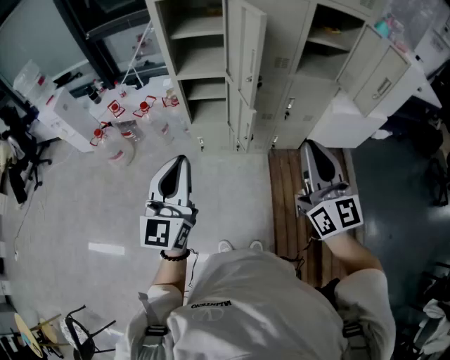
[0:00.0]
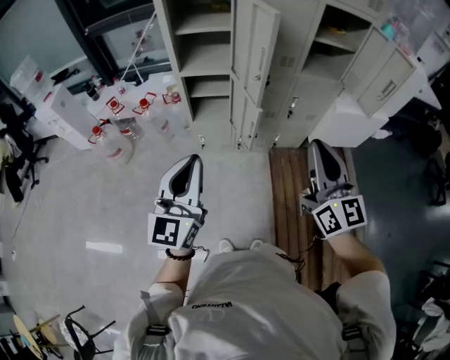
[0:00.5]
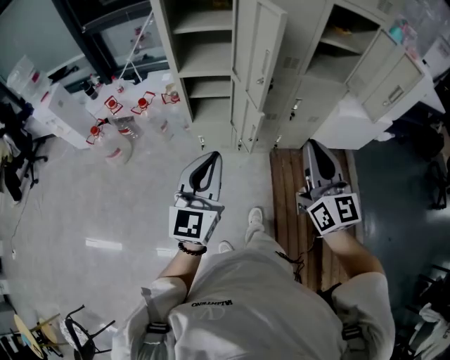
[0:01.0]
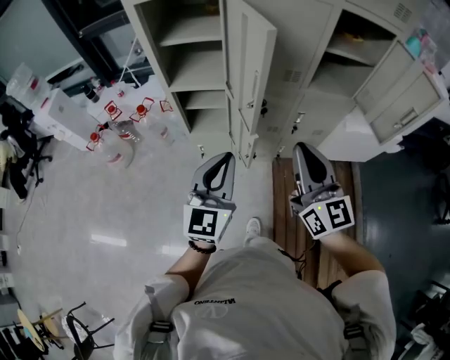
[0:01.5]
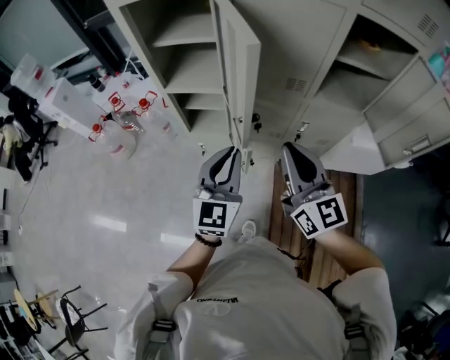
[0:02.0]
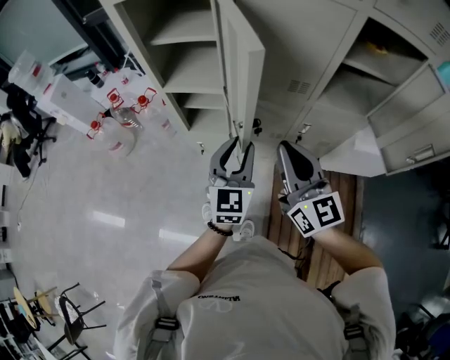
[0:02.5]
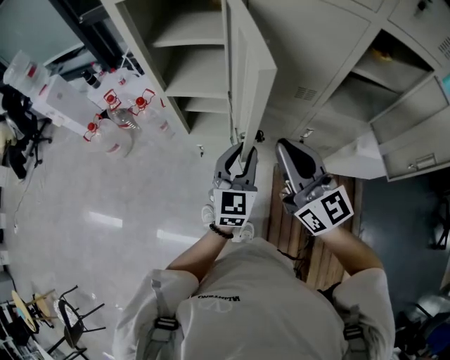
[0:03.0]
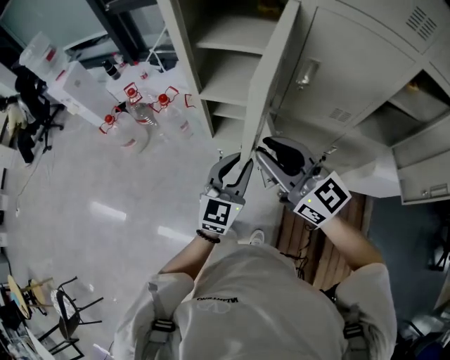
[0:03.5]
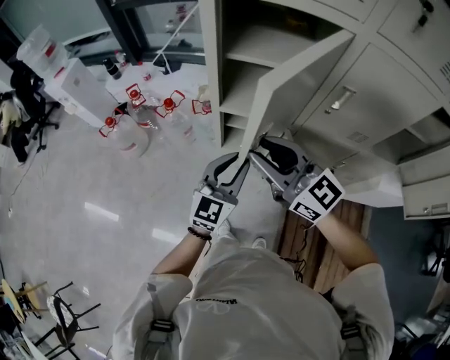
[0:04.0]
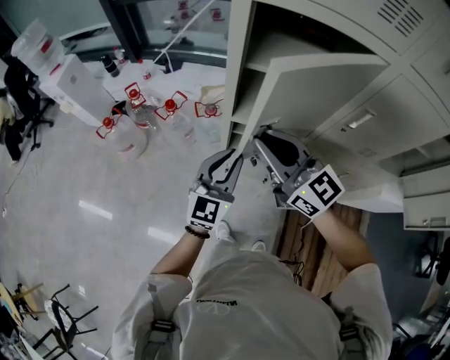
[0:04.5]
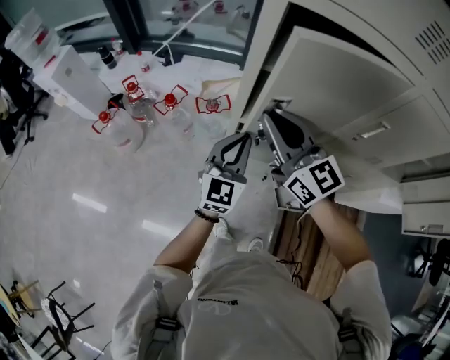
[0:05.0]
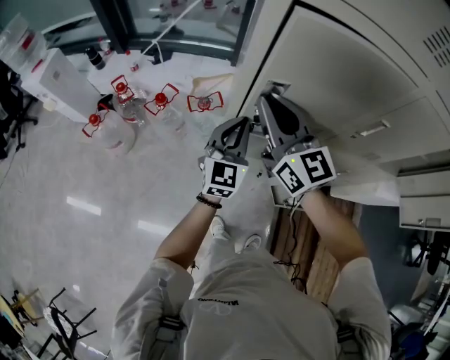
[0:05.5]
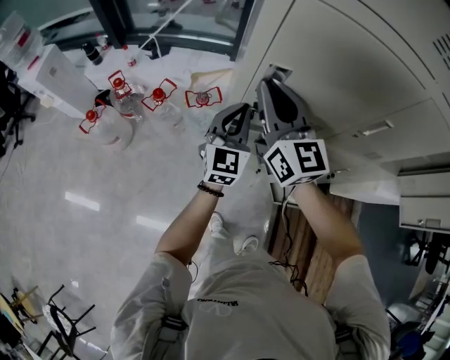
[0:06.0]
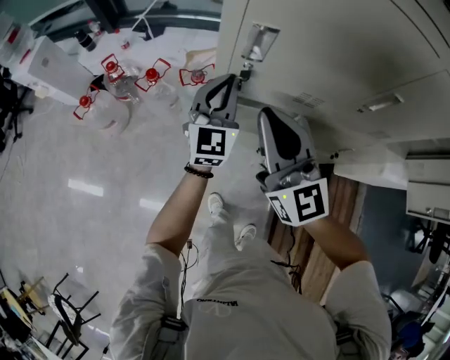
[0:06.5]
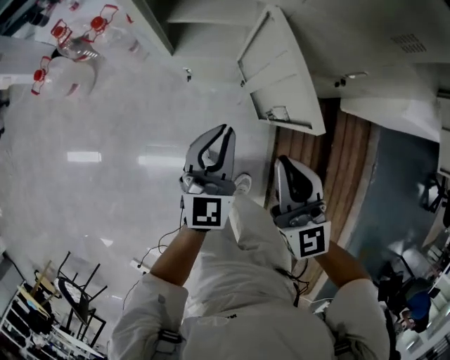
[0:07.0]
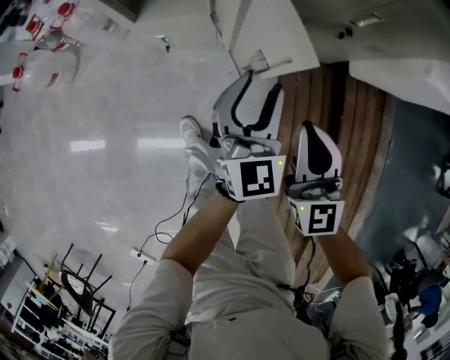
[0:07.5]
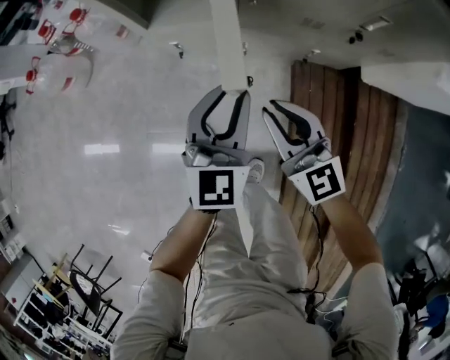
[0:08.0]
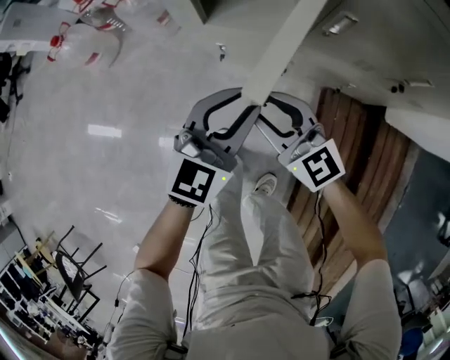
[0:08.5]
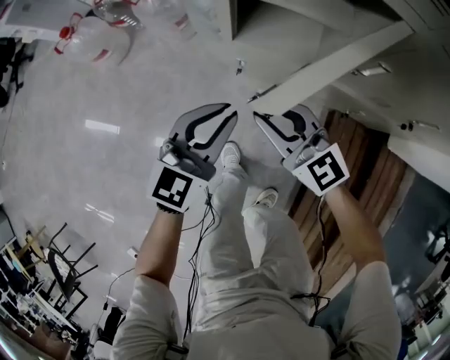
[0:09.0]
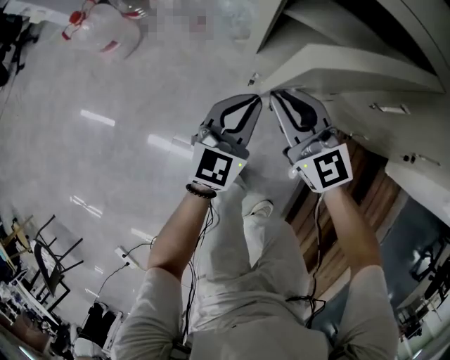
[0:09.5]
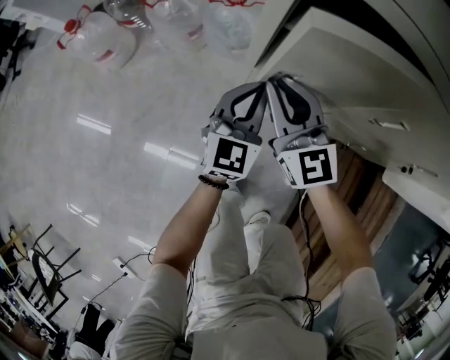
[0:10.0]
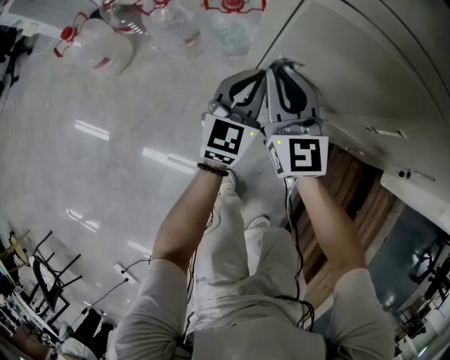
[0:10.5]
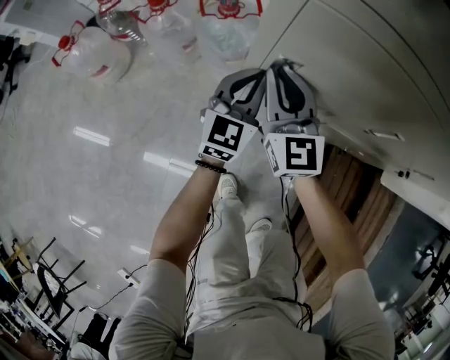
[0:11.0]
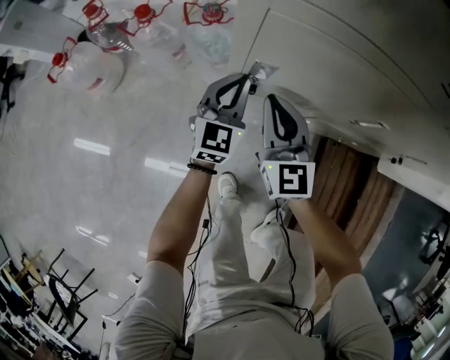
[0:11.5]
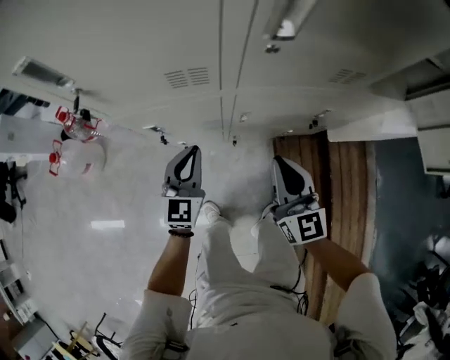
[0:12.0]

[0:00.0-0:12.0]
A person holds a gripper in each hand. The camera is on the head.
0:00.0 to 0:02.0: The right gripper heads forward, covering roughly 25 cm; the left gripper travels forward and to the right by roughly 30 cm.
0:02.0 to 0:04.0: Both grippers travel together to the left and forward, some 30 cm. The right gripper changes its angle by approximately 30 degrees, and opens.
0:04.0 to 0:06.0: Both grippers move forward, some 20 cm. The right gripper rotates approximately 30 degrees, and closes its fingers.
0:06.0 to 0:08.0: Both grippers travel together downward, backward and to the right, some 50 cm. The left gripper opens its fingers.
0:08.0 to 0:10.0: Both grippers travel together forward and to the left, approximately 35 cm. The right gripper opens, then closes once more, while the left gripper closes.
0:10.0 to 0:12.0: The right gripper is displaced to the right, upward and backward by about 40 cm, and swivels some 30 degrees. The left gripper travels upward and to the right by roughly 25 cm.

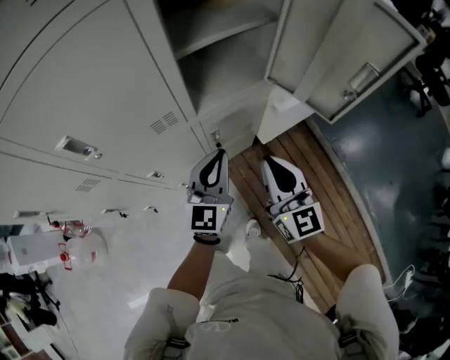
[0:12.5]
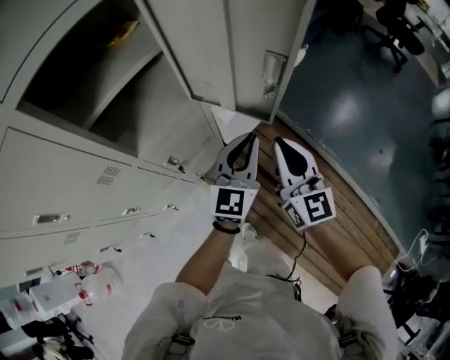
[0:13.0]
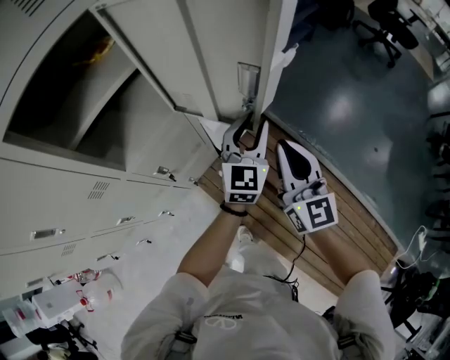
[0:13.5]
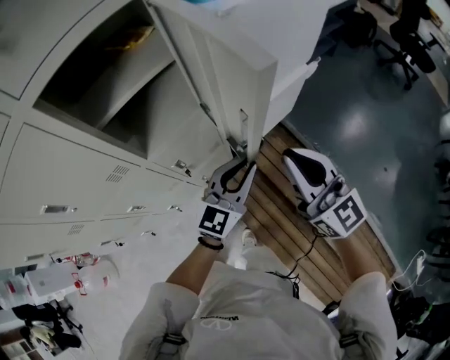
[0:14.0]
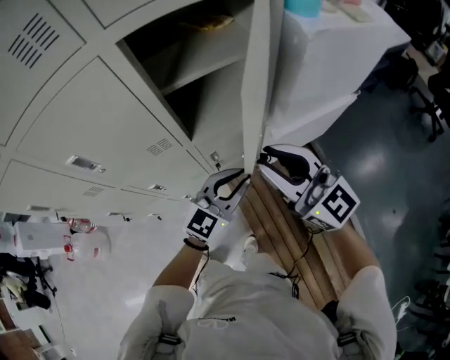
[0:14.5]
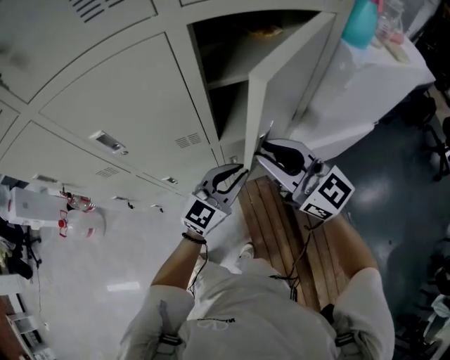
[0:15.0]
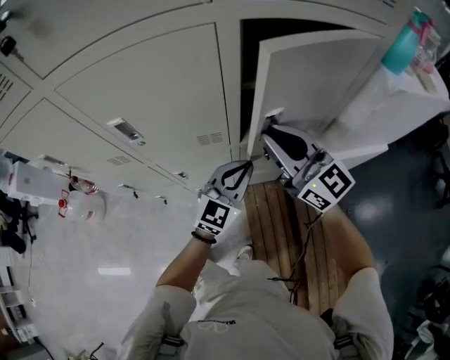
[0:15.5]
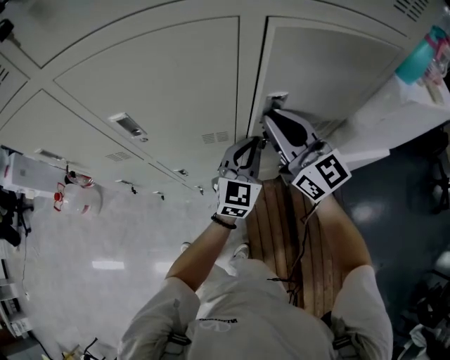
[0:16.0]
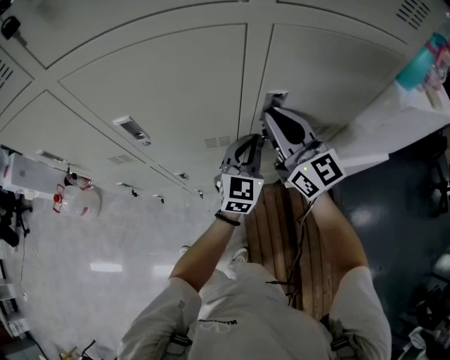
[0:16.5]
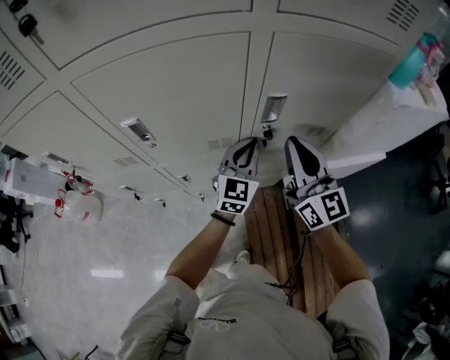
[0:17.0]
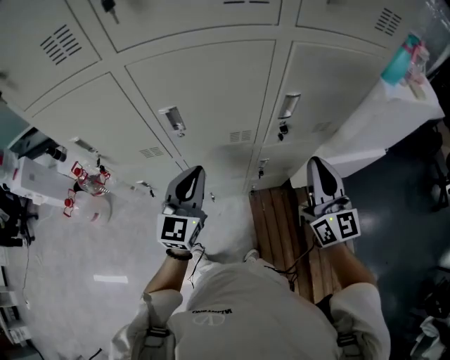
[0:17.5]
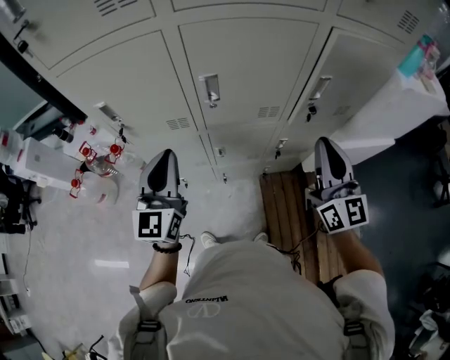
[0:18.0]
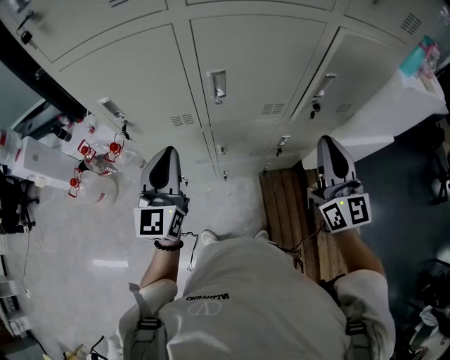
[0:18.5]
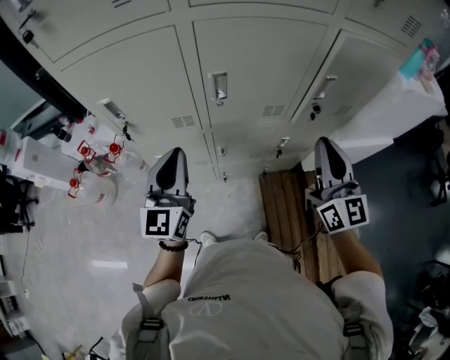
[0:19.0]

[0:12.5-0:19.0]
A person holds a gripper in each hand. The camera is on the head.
0:12.5 to 0:14.5: The right gripper shifts about 15 cm upward and forward, reaches about 25 cm to the right, then returns, swivels about 30 degrees, and opens its fingers, while the left gripper moves approximately 35 cm to the right and comes back, and swivels approximately 20 degrees.
0:14.5 to 0:17.0: The grippers both shift forward and to the left by some 15 cm. The left gripper changes its angle by approximately 40 degrees. Meanwhile the right gripper closes up.
0:17.0 to 0:19.0: The left gripper goes about 40 cm to the left and backward, and swivels about 20 degrees. Meanwhile the right gripper goes some 20 cm backward, to the left and upward.

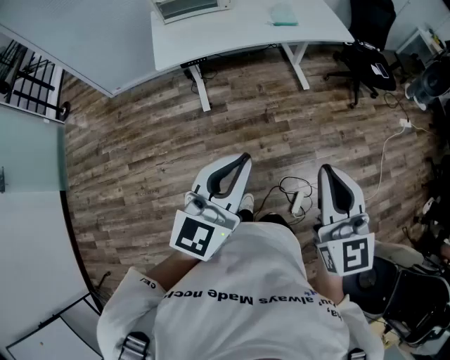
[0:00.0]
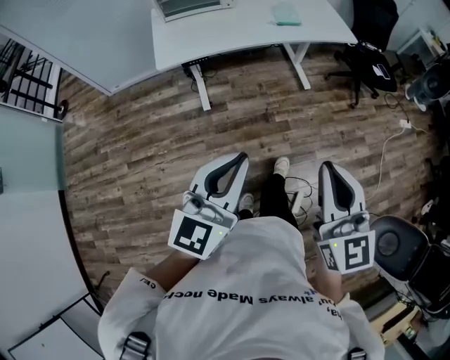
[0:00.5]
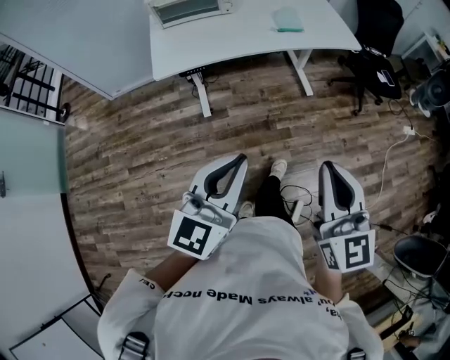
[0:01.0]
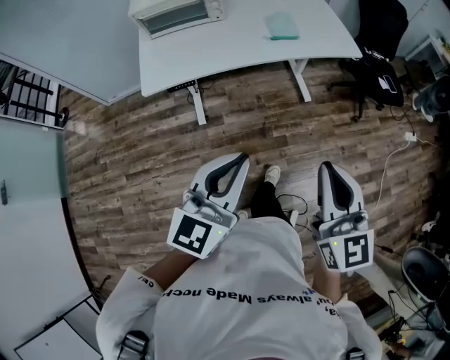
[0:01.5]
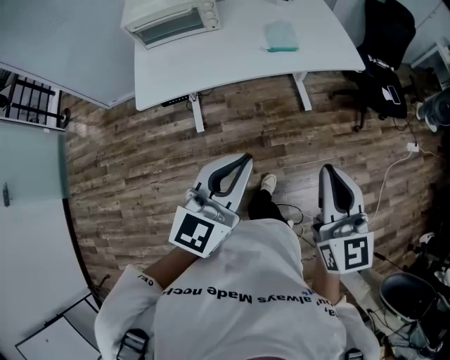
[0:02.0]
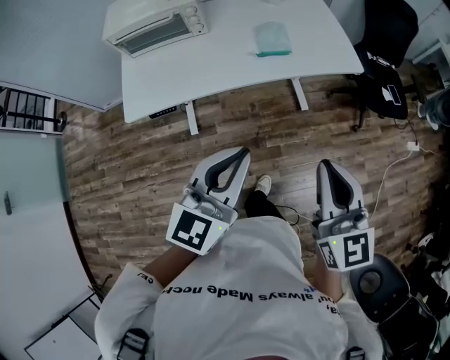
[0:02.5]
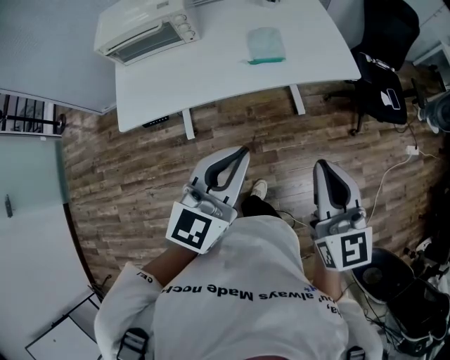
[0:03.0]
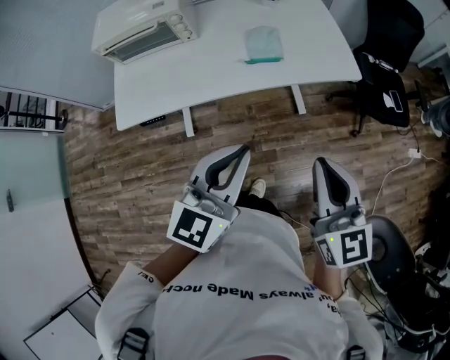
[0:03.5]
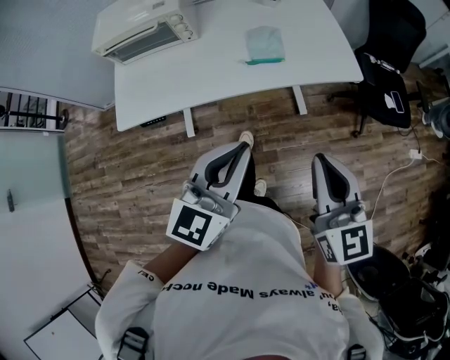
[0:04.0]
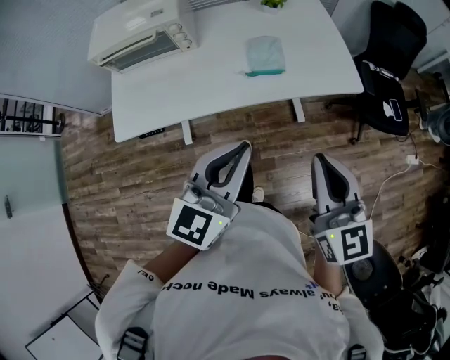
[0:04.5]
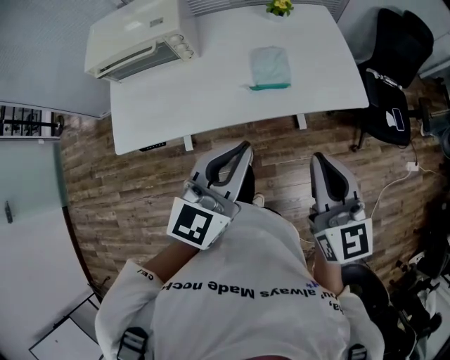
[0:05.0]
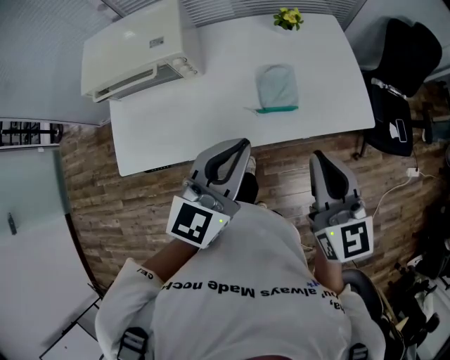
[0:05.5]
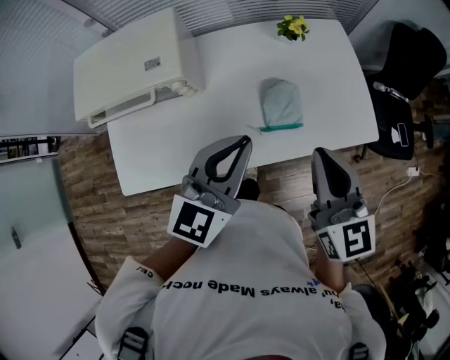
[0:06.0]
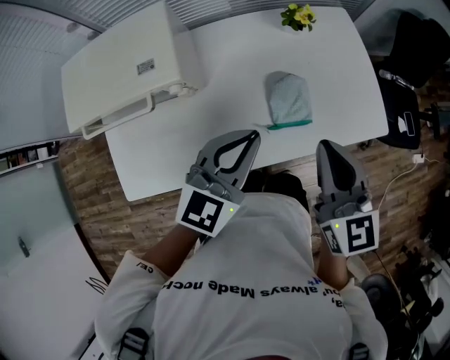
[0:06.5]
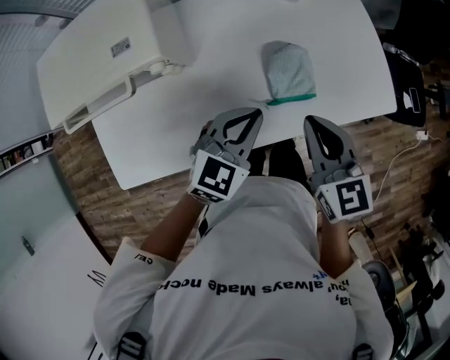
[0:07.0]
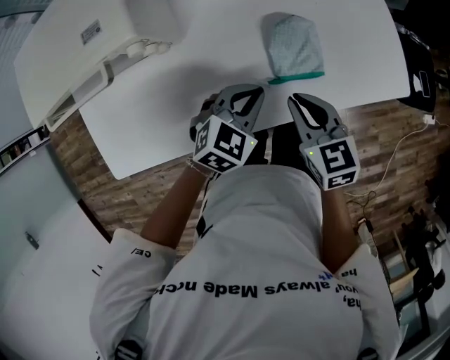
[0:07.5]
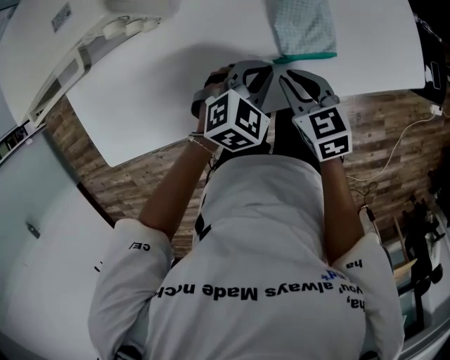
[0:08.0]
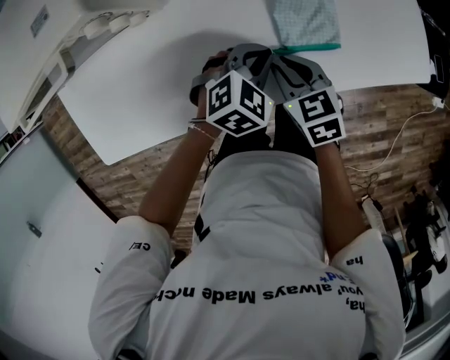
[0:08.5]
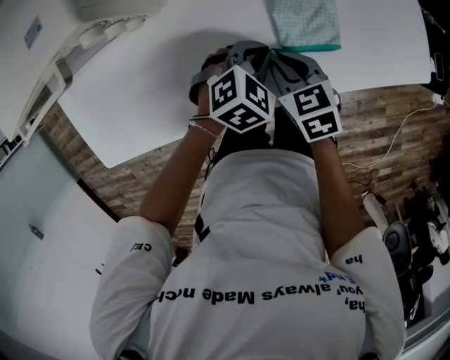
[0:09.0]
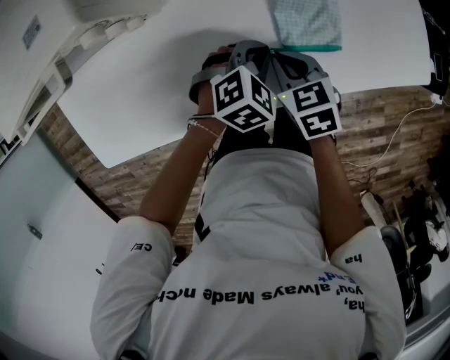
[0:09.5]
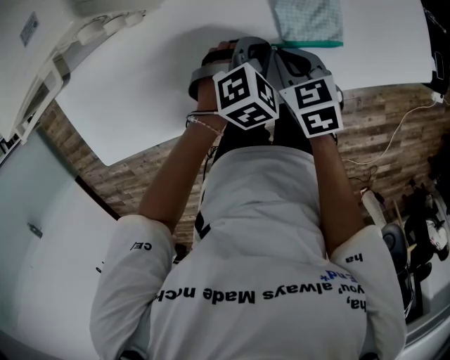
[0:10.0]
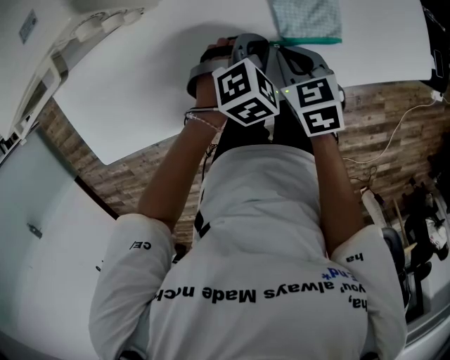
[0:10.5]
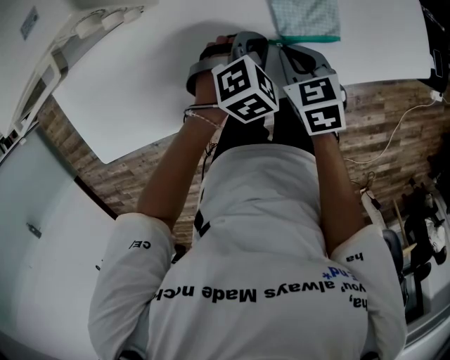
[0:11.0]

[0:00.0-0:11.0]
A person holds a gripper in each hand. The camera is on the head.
0:00.0 to 0:02.0: Both grippers move forward, about 25 cm.
0:02.0 to 0:03.5: The grippers both shift forward and to the right by some 20 cm.
0:03.5 to 0:05.5: The two grippers go roughly 25 cm forward.
0:05.5 to 0:07.5: Both grippers move downward and forward, about 30 cm. The right gripper turns by about 30 degrees. The left gripper angles its fingers downward, by approximately 30 degrees.
0:07.5 to 0:09.0: The two grippers go roughly 10 cm downward.
0:09.0 to 0:11.0: The grippers move only a little.
